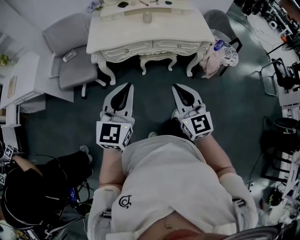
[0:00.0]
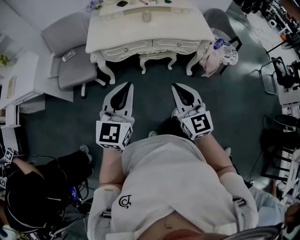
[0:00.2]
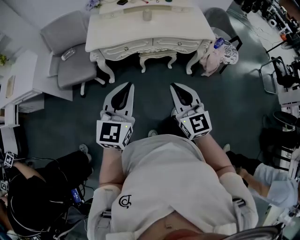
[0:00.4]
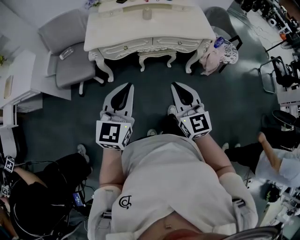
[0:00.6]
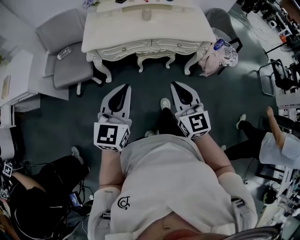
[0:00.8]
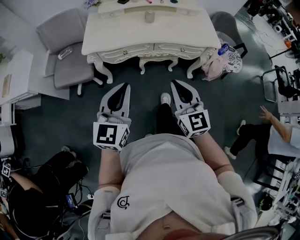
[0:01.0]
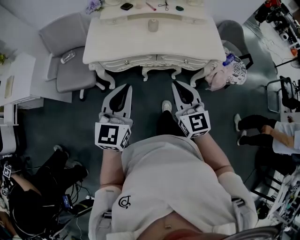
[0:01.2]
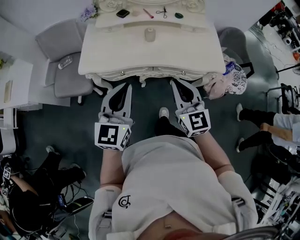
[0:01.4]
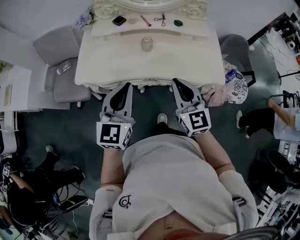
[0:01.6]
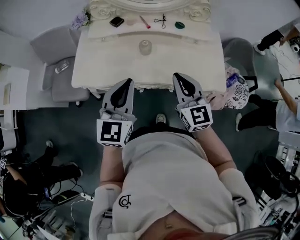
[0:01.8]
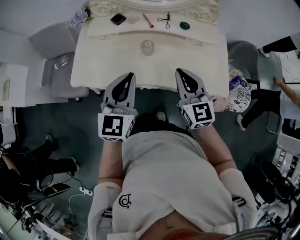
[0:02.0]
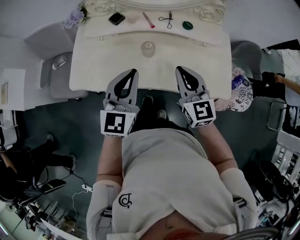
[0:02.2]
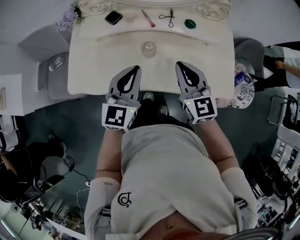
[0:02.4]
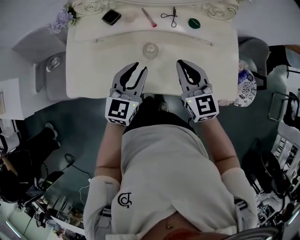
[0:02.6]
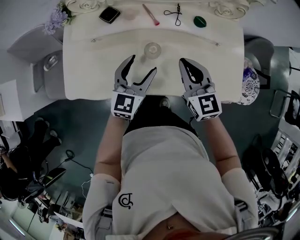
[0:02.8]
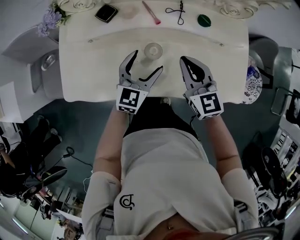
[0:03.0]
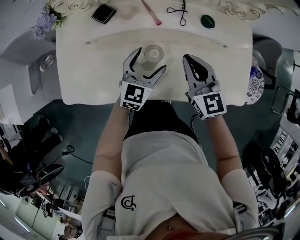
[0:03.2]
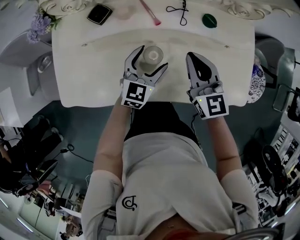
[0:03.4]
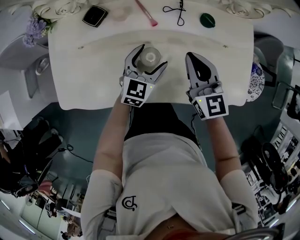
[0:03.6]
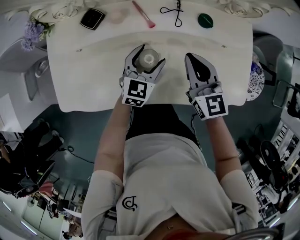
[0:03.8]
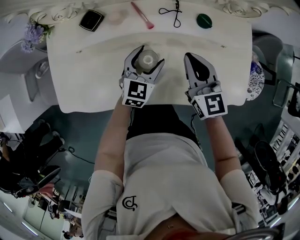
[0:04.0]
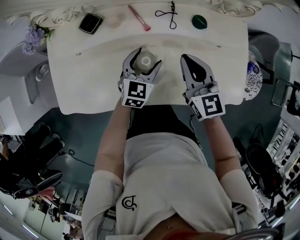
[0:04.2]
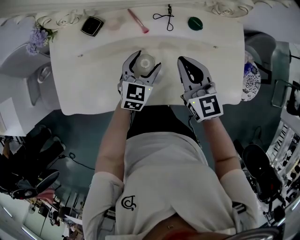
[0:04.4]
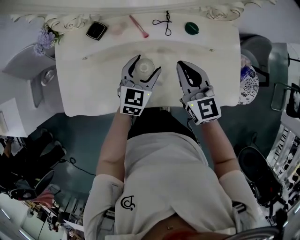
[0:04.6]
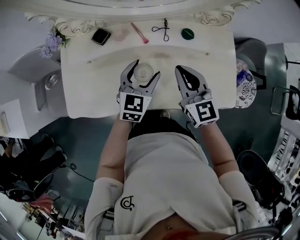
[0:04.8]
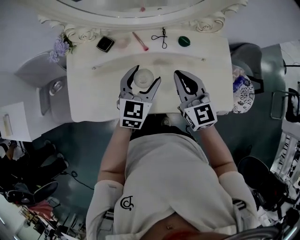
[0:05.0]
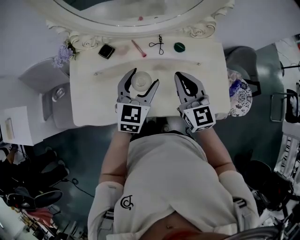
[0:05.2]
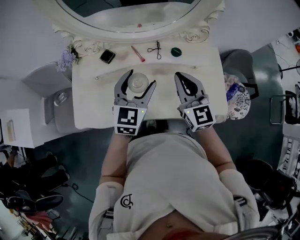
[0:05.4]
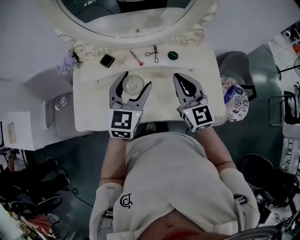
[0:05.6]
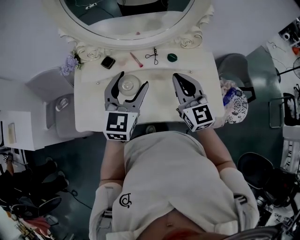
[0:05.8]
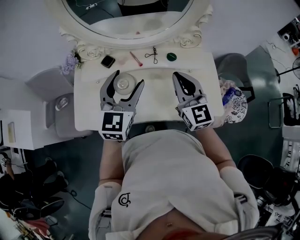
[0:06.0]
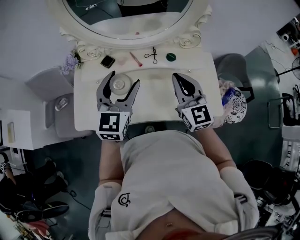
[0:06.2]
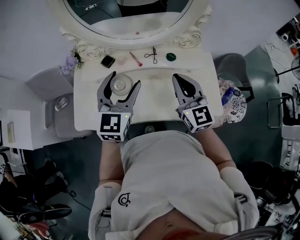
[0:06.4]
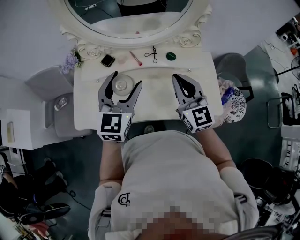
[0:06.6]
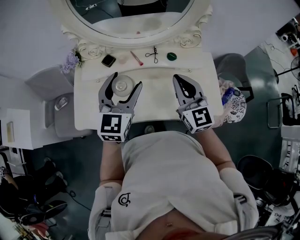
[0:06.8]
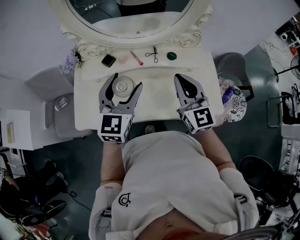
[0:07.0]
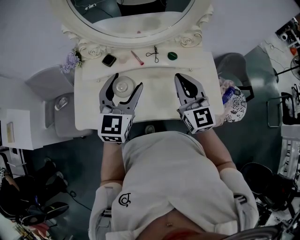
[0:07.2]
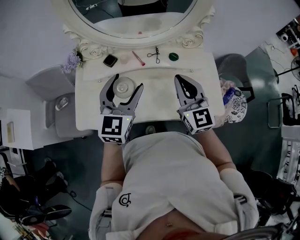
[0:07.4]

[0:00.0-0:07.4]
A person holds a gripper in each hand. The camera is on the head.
0:00.0 to 0:01.4: The two grippers go approximately 25 cm forward.
0:01.4 to 0:03.0: The right gripper shifts roughly 35 cm forward. Meanwhile the left gripper travels forward and downward by about 40 cm, and opens up.
0:03.0 to 0:04.4: The left gripper ends up roughly 5 cm from where it was.
0:04.4 to 0:06.0: The right gripper heads upward, covering about 15 cm, while the left gripper goes roughly 30 cm upward, and turns by roughly 20 degrees.
0:06.0 to 0:07.4: The grippers make only small movements.

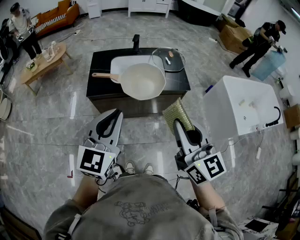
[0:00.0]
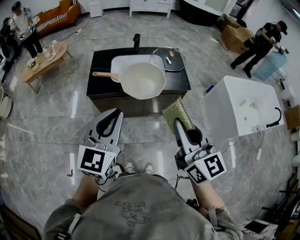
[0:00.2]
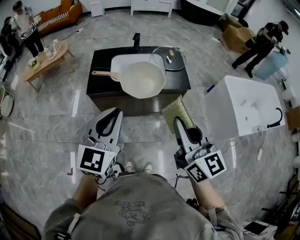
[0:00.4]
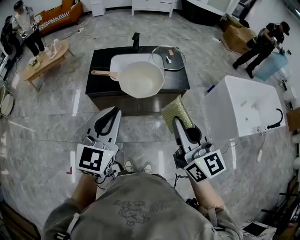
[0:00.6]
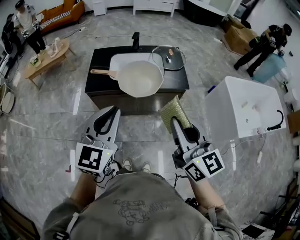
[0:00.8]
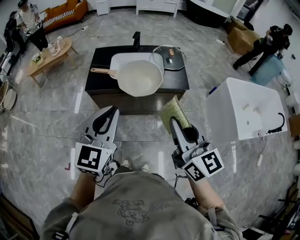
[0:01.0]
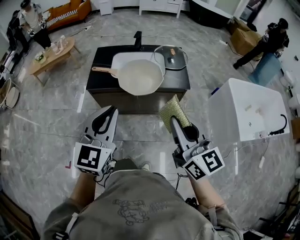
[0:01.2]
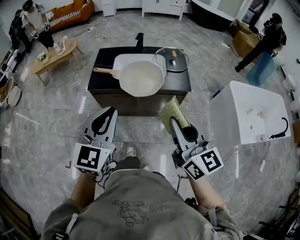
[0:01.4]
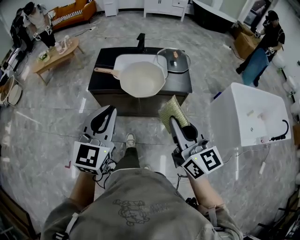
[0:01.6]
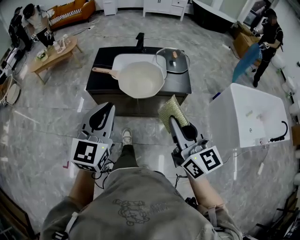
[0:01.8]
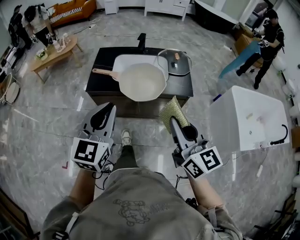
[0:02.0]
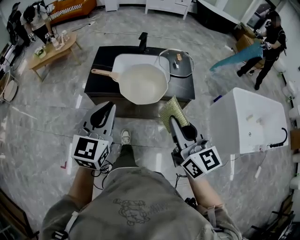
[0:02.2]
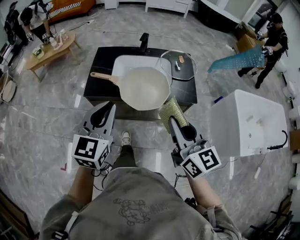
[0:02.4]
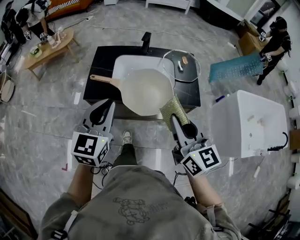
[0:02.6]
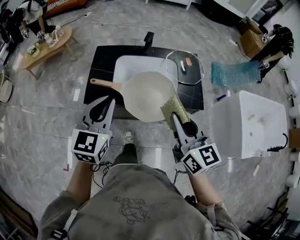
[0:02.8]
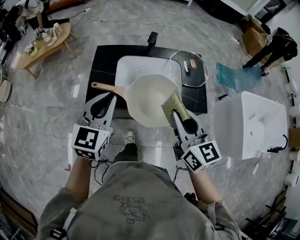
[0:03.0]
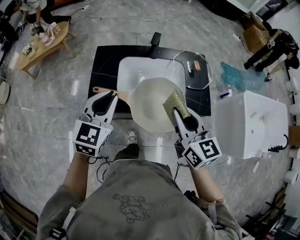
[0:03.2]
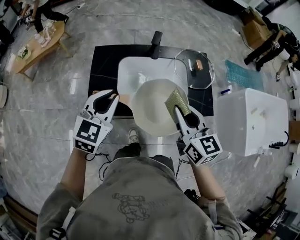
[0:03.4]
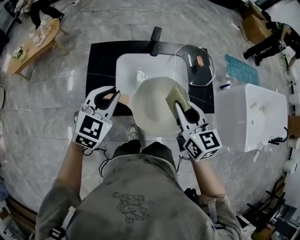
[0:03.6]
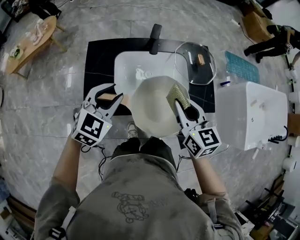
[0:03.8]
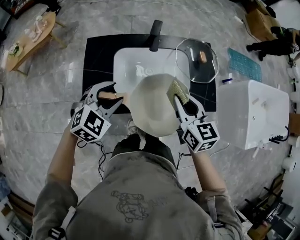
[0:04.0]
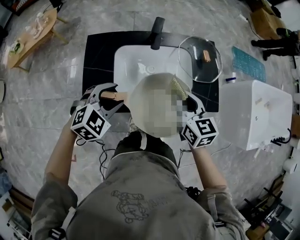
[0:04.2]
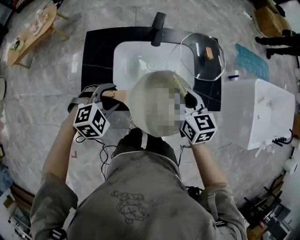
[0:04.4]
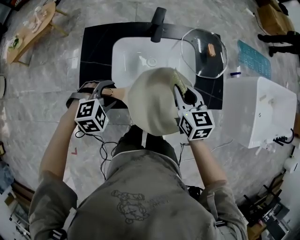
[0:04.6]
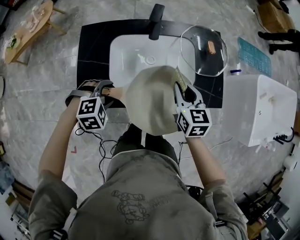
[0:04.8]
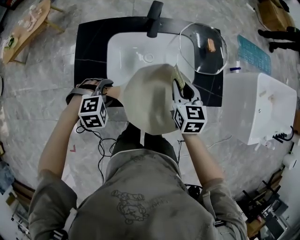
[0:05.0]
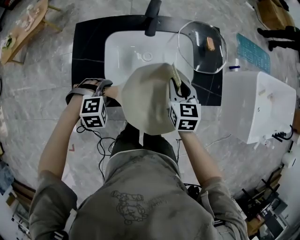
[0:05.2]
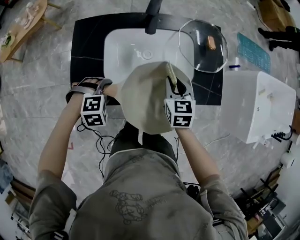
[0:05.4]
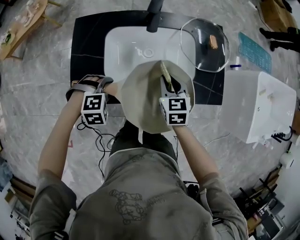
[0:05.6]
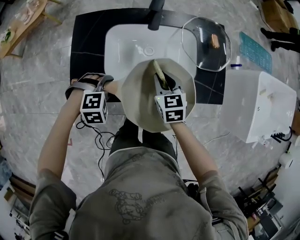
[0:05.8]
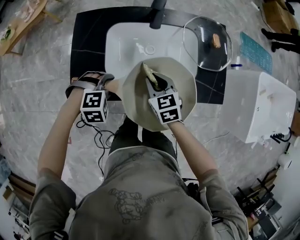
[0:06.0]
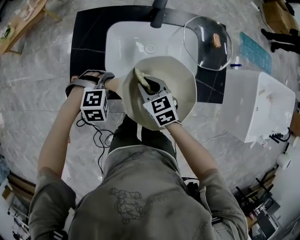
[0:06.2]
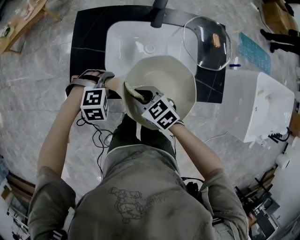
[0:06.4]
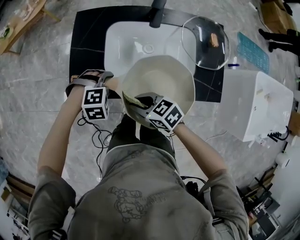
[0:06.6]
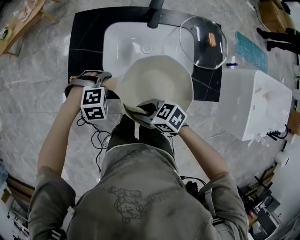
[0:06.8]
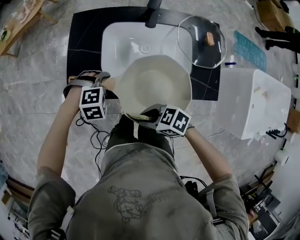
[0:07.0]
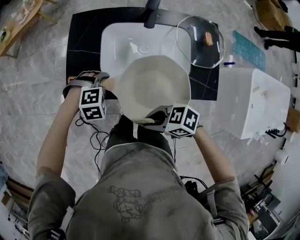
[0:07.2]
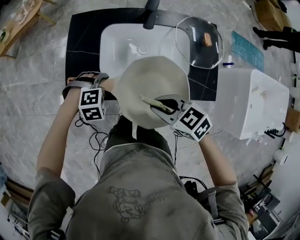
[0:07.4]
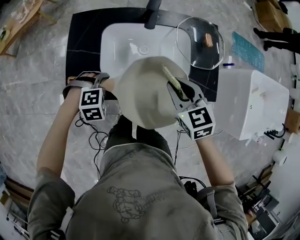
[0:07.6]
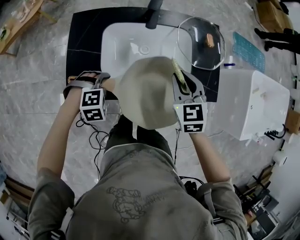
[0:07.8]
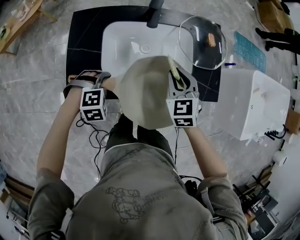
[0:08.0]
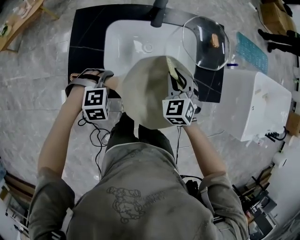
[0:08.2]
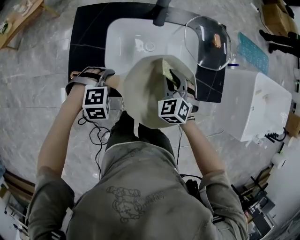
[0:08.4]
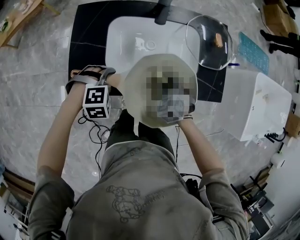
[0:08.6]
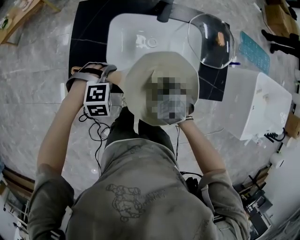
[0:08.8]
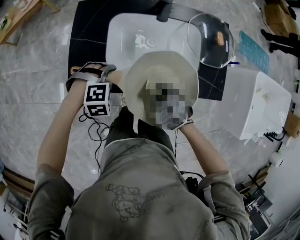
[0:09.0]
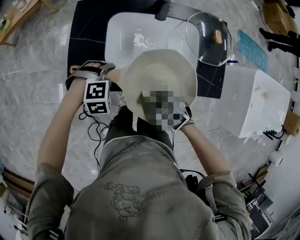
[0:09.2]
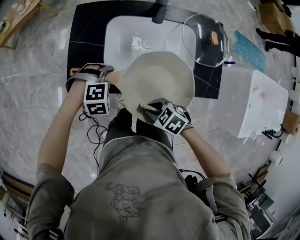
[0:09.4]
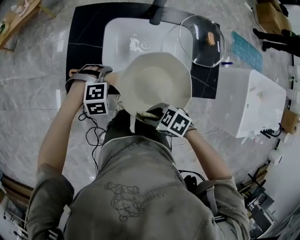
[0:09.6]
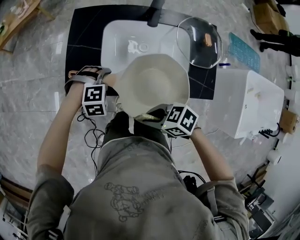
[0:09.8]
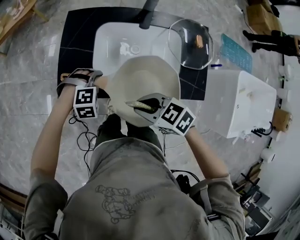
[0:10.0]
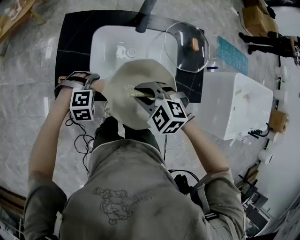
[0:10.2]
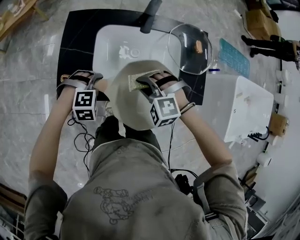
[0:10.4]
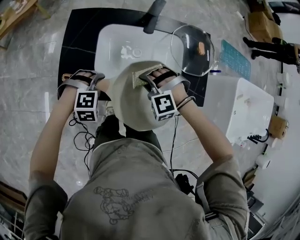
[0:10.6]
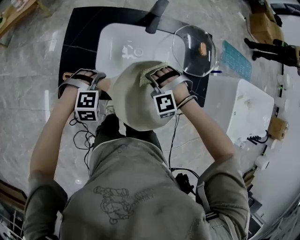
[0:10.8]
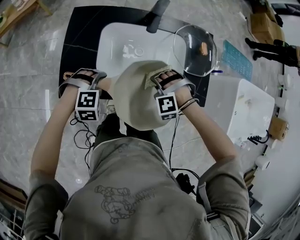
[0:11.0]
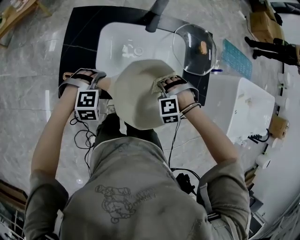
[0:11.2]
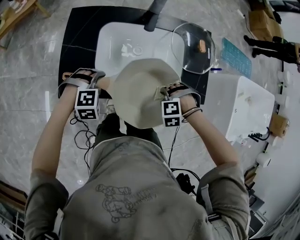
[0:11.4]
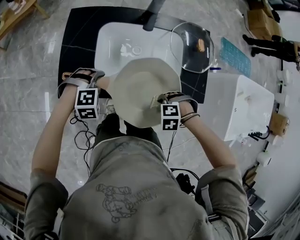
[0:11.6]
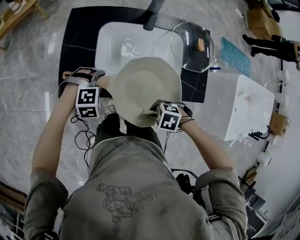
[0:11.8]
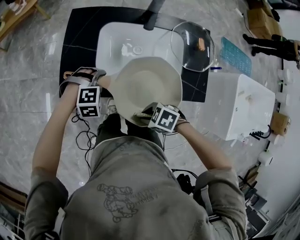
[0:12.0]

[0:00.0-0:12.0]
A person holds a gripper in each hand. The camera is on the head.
0:00.0 to 0:01.6: The grippers both shift to the right by some 5 cm.
0:01.6 to 0:03.0: The two grippers go about 30 cm forward.
0:03.0 to 0:04.4: The left gripper travels downward and forward by about 20 cm, angles its fingers downward, by some 40 degrees, and opens, while the right gripper heads forward and downward, covering about 25 cm.
0:04.4 to 0:06.0: Both grippers move downward, some 10 cm. The left gripper swivels roughly 20 degrees.
0:06.0 to 0:07.6: The right gripper moves upward, approximately 10 cm.
0:07.6 to 0:09.0: The right gripper travels downward by about 15 cm, and swivels roughly 30 degrees.
0:09.0 to 0:10.4: The right gripper heads upward, covering about 10 cm, and twists some 50 degrees counterclockwise, seen from behind.
0:10.4 to 0:12.0: The right gripper ends up roughly 20 cm from where it was, and swivels roughly 60 degrees.

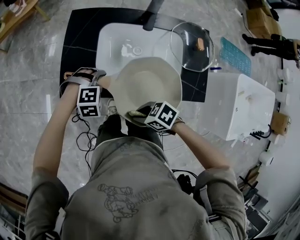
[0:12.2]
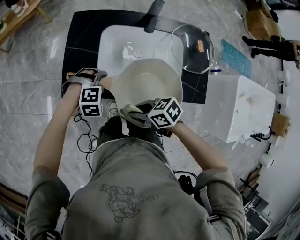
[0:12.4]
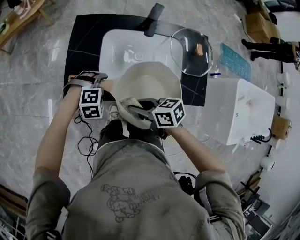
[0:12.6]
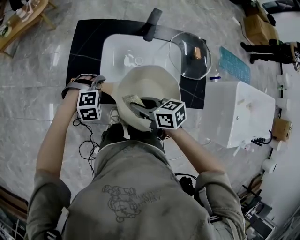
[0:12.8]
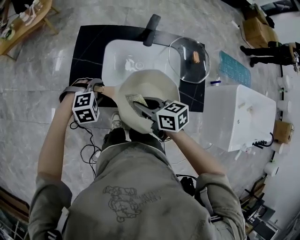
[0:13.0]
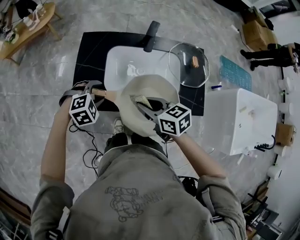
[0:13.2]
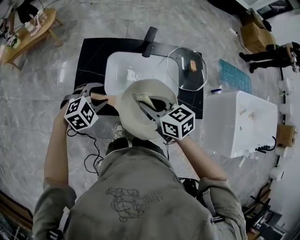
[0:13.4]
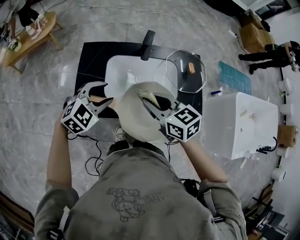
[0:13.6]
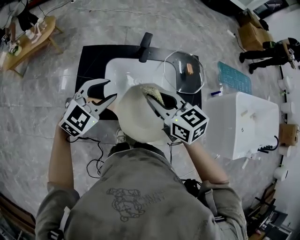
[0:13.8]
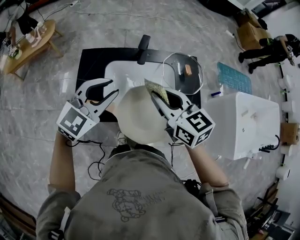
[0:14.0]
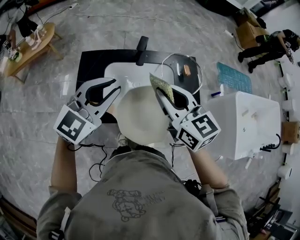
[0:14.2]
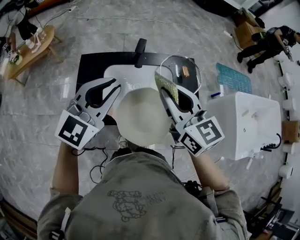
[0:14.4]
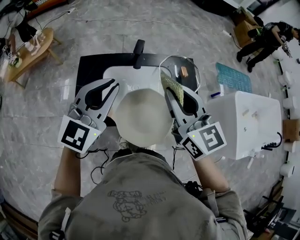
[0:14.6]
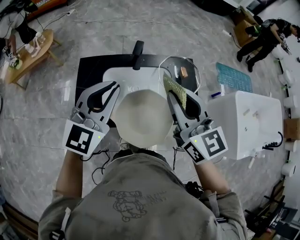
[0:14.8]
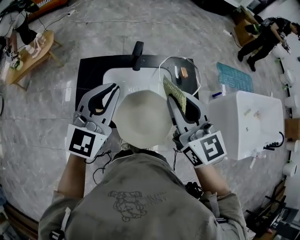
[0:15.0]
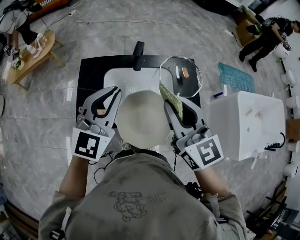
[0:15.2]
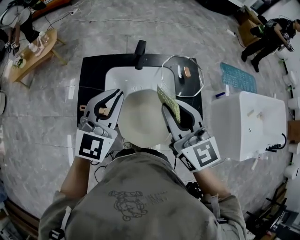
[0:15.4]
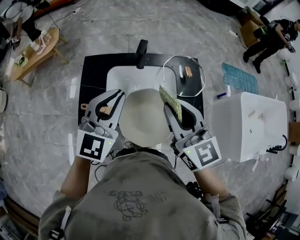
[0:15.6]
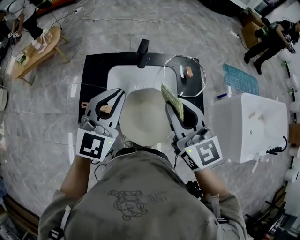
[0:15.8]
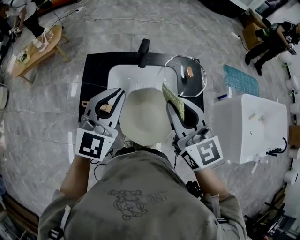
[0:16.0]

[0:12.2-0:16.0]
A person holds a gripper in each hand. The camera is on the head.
0:12.2 to 0:13.4: Both grippers move upward, approximately 15 cm. The right gripper swivels roughly 50 degrees. The left gripper rotates approximately 30 degrees.
0:13.4 to 0:14.8: The left gripper goes roughly 25 cm upward, tips its fingers upward by some 50 degrees, and closes. Meanwhile the right gripper heads upward and to the right, covering some 25 cm, and changes its angle by approximately 40 degrees.
0:14.8 to 0:16.0: The grippers make only small movements.
